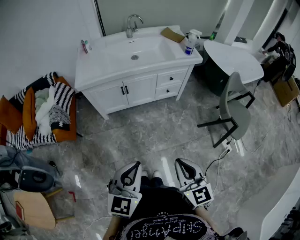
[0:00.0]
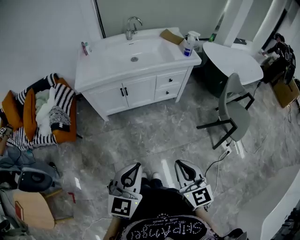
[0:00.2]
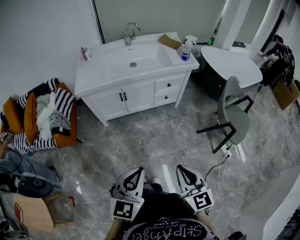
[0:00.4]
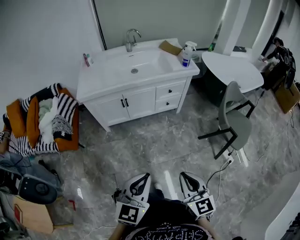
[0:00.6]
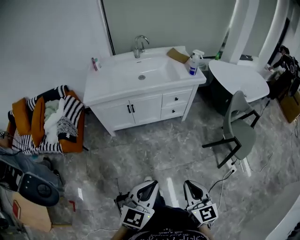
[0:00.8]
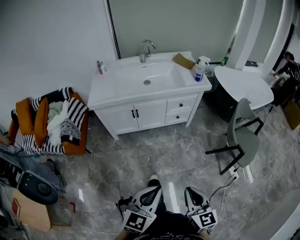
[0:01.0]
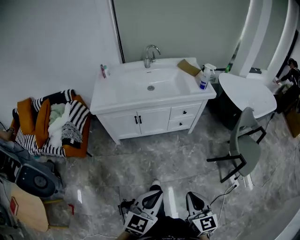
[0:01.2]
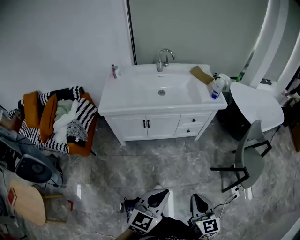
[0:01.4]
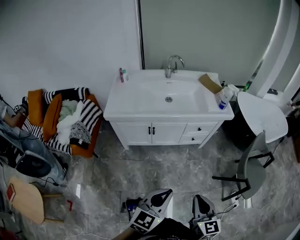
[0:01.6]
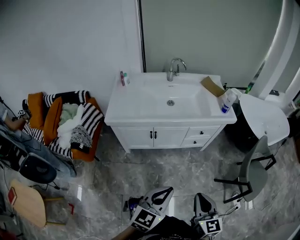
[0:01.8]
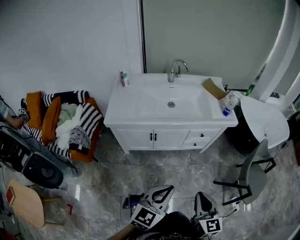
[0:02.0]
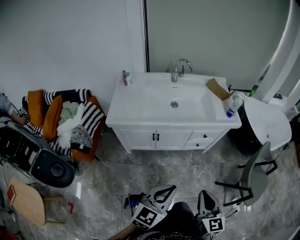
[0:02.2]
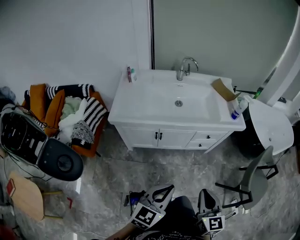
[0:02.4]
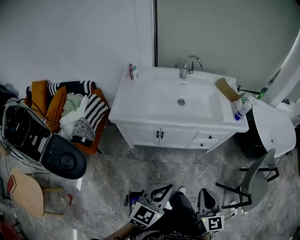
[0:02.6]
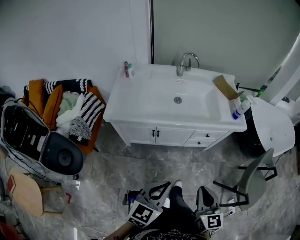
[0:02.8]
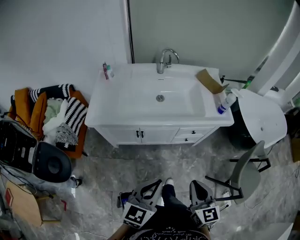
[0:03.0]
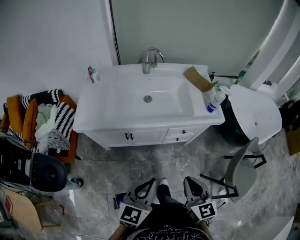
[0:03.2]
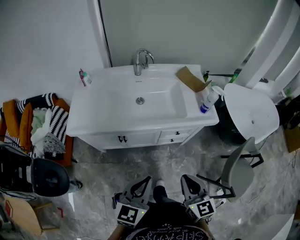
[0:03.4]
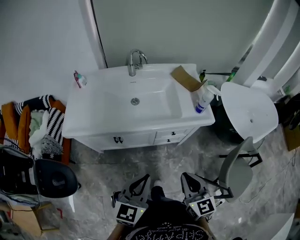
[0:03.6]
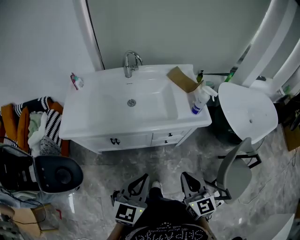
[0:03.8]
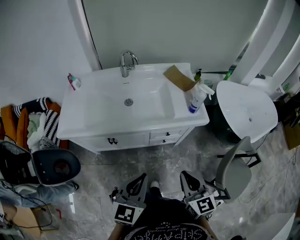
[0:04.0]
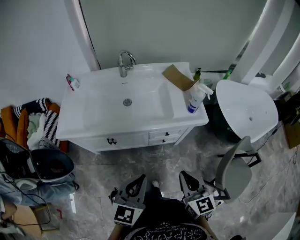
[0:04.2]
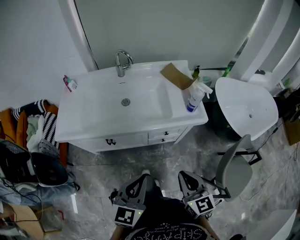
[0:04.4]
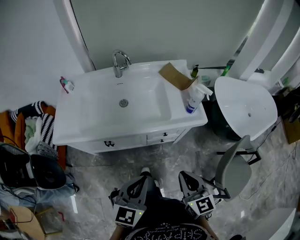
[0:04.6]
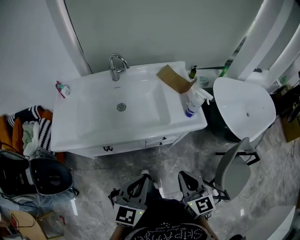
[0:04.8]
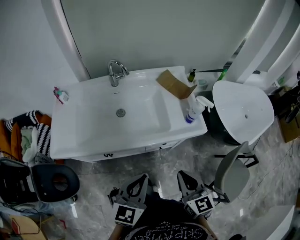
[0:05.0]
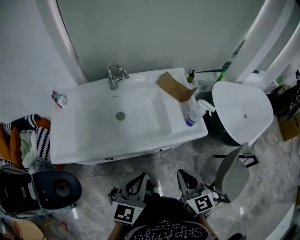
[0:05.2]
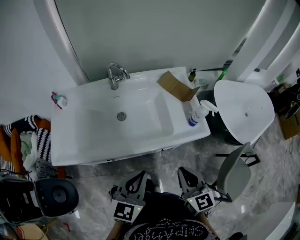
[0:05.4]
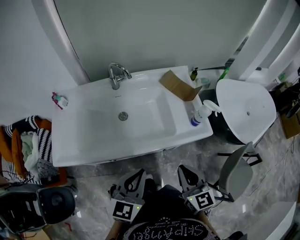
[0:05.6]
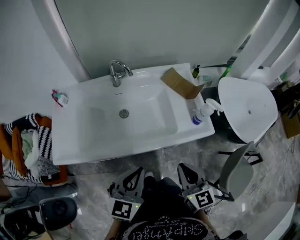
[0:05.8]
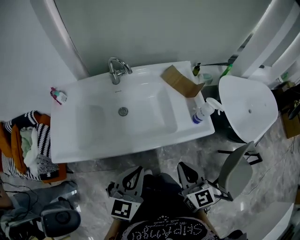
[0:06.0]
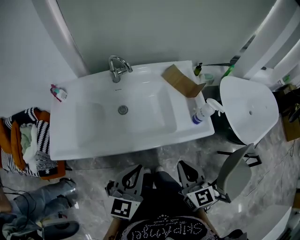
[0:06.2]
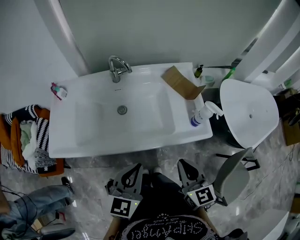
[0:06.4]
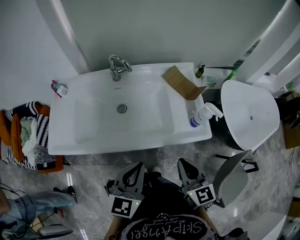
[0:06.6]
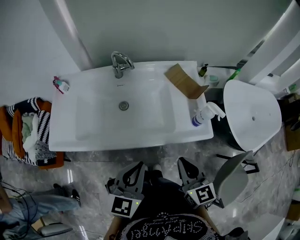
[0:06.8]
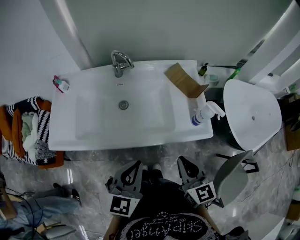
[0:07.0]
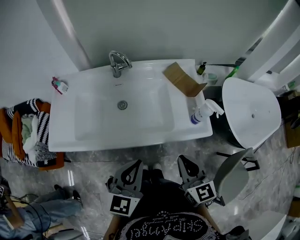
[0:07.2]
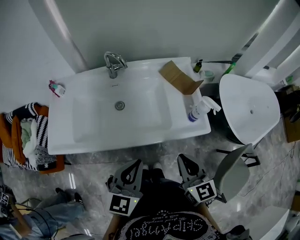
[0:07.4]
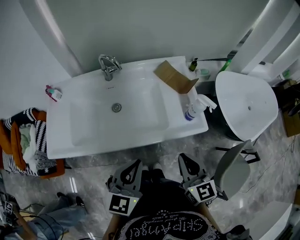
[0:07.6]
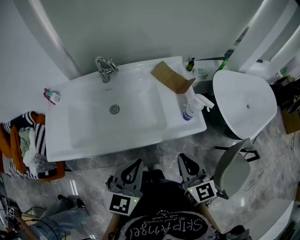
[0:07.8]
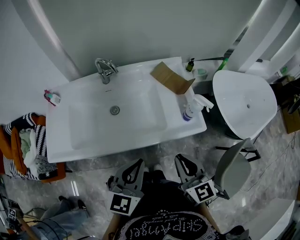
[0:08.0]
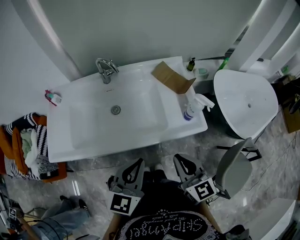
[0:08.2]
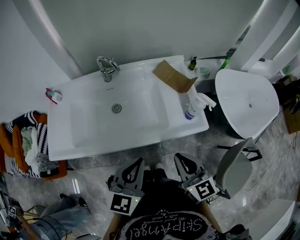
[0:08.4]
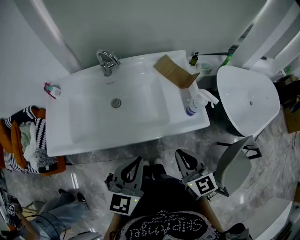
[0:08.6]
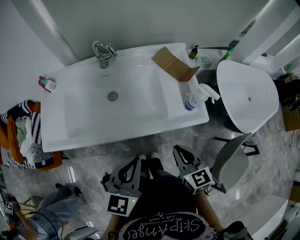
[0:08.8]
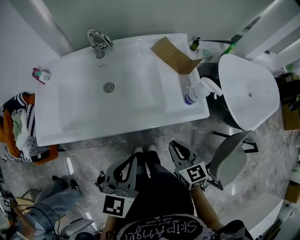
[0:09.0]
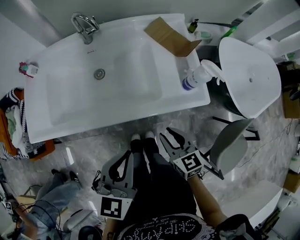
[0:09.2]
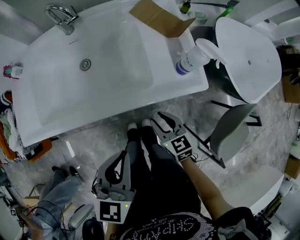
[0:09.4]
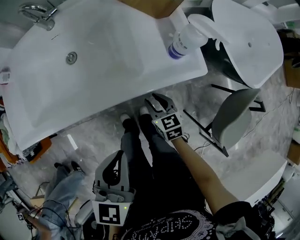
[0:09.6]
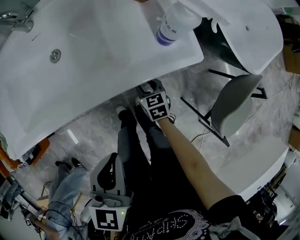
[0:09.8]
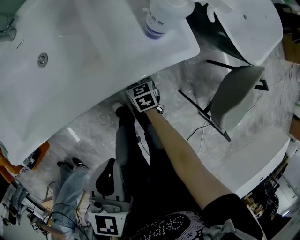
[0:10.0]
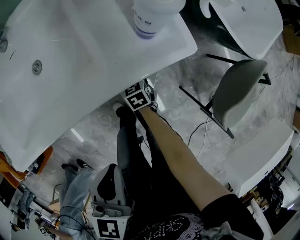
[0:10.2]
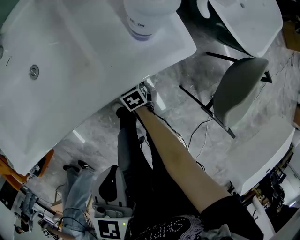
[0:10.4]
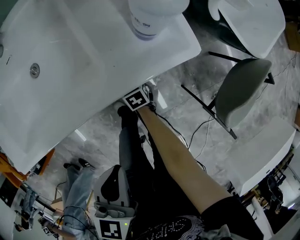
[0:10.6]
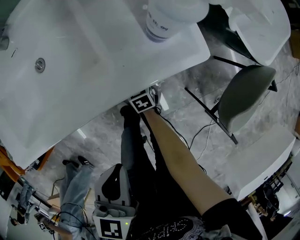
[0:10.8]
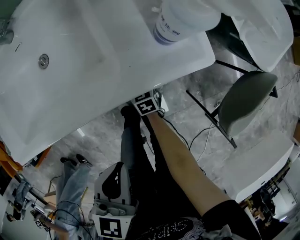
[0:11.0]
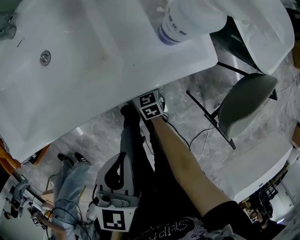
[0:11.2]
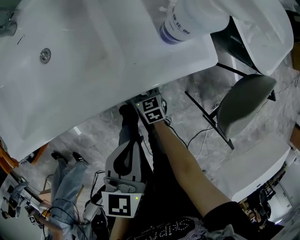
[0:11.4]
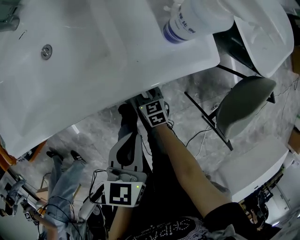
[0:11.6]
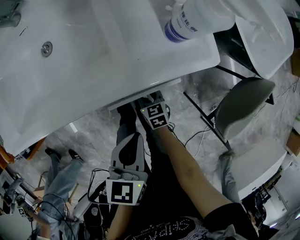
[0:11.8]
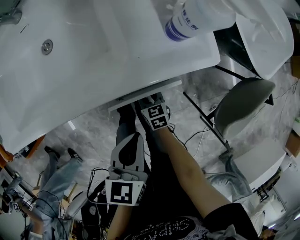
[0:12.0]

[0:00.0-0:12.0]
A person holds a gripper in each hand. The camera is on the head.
0:00.0 to 0:01.6: The right gripper travels forward by roughly 10 cm; the left gripper heads forward and to the right, covering approximately 15 cm.
0:01.6 to 0:03.0: Both grippers travel together forward, about 20 cm.
0:03.0 to 0:04.4: Both grippers move to the right and forward, about 15 cm.
0:04.4 to 0:06.0: The grippers both shift forward by approximately 15 cm.
0:06.0 to 0:07.6: The right gripper goes approximately 5 cm to the right. The left gripper moves approximately 5 cm.
0:07.6 to 0:09.0: The right gripper heads downward, covering some 10 cm.
0:09.0 to 0:10.4: The right gripper shifts about 35 cm downward, turns by about 30 degrees, and opens up. Meanwhile the left gripper goes some 15 cm downward and to the right, and swivels roughly 20 degrees.
0:10.4 to 0:12.0: The right gripper is displaced backward by approximately 10 cm, while the left gripper travels downward by approximately 10 cm.

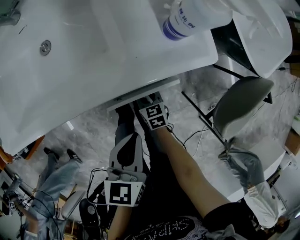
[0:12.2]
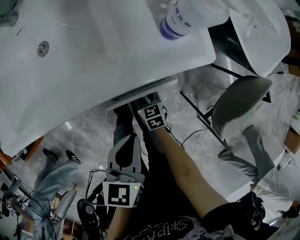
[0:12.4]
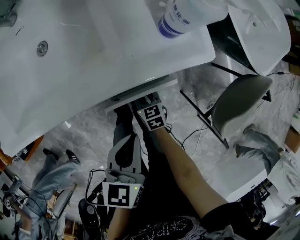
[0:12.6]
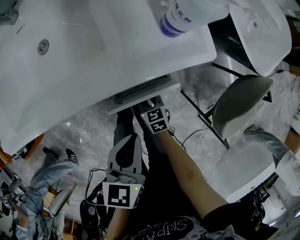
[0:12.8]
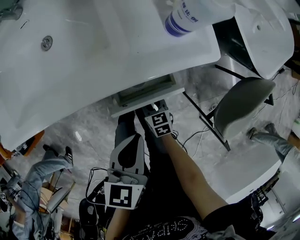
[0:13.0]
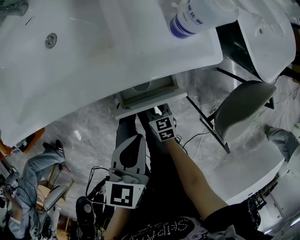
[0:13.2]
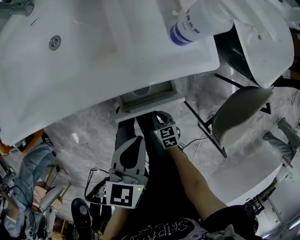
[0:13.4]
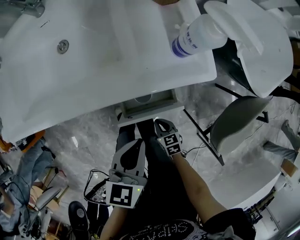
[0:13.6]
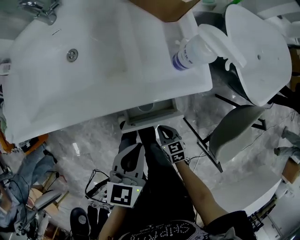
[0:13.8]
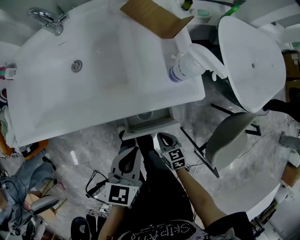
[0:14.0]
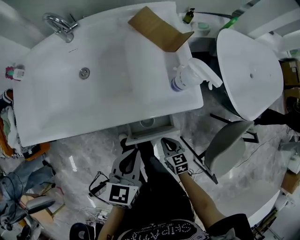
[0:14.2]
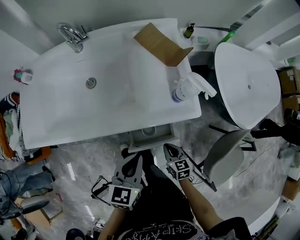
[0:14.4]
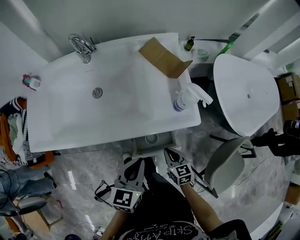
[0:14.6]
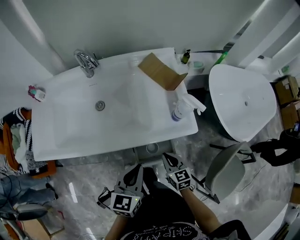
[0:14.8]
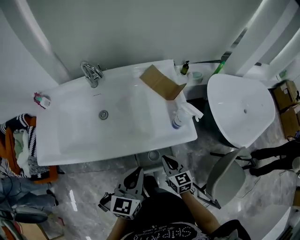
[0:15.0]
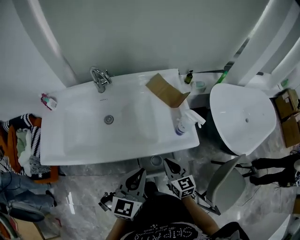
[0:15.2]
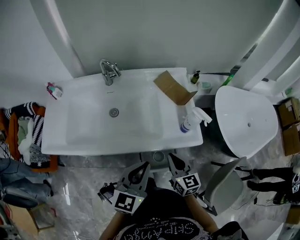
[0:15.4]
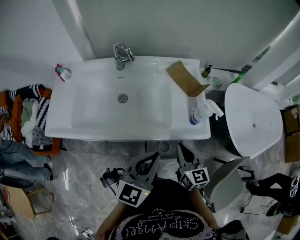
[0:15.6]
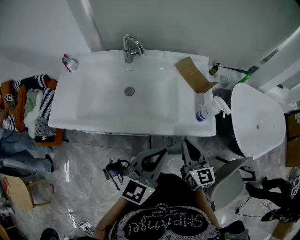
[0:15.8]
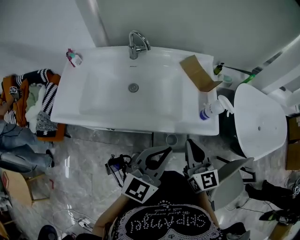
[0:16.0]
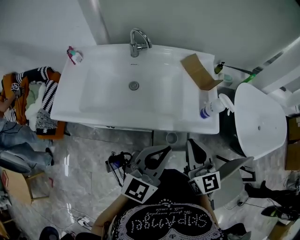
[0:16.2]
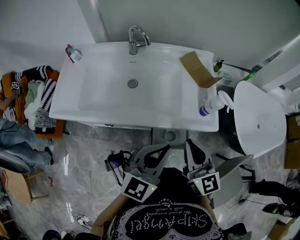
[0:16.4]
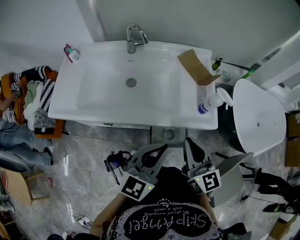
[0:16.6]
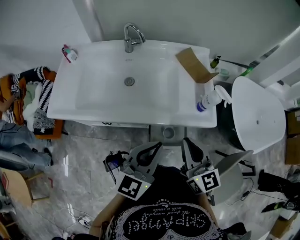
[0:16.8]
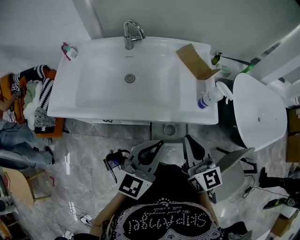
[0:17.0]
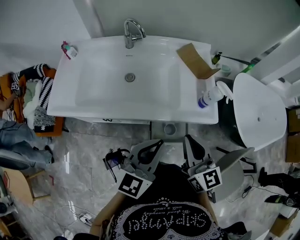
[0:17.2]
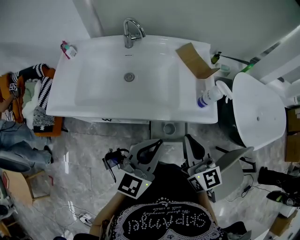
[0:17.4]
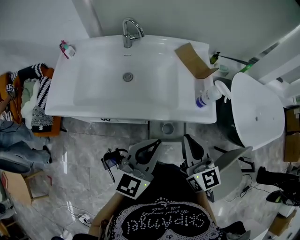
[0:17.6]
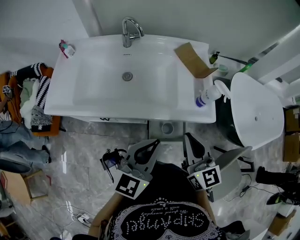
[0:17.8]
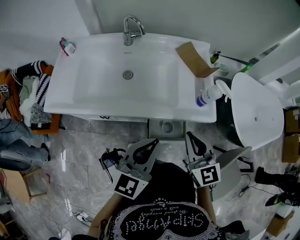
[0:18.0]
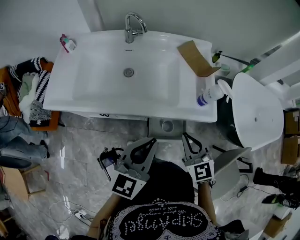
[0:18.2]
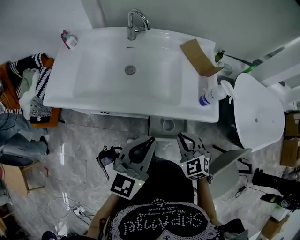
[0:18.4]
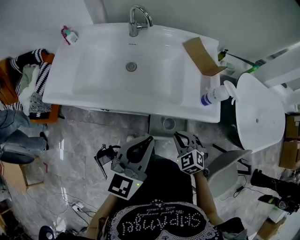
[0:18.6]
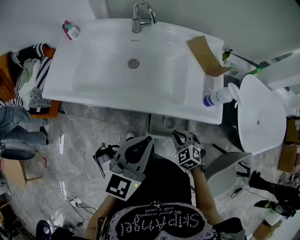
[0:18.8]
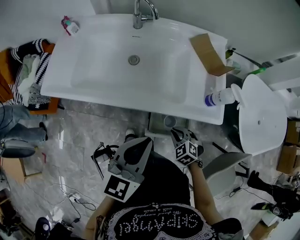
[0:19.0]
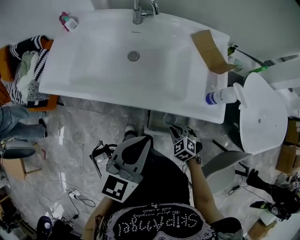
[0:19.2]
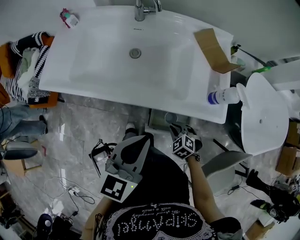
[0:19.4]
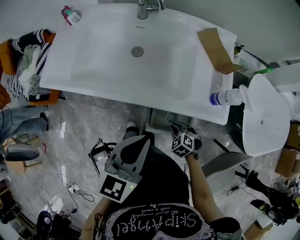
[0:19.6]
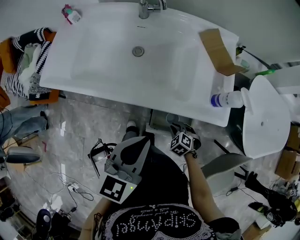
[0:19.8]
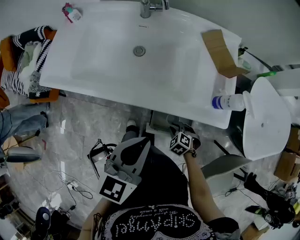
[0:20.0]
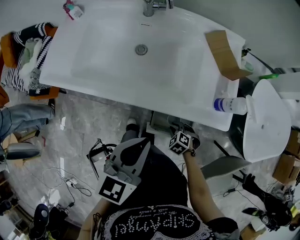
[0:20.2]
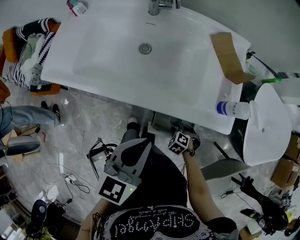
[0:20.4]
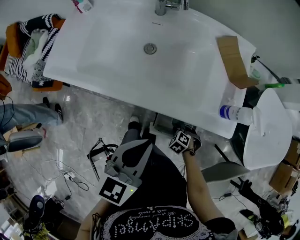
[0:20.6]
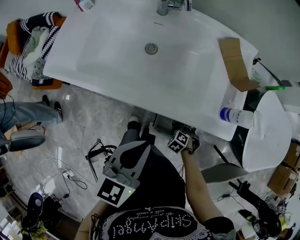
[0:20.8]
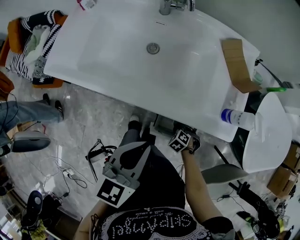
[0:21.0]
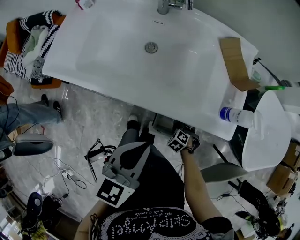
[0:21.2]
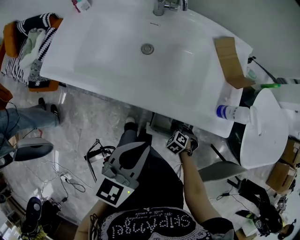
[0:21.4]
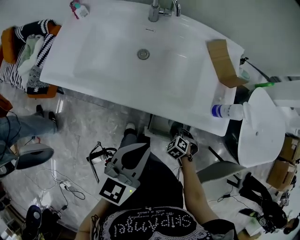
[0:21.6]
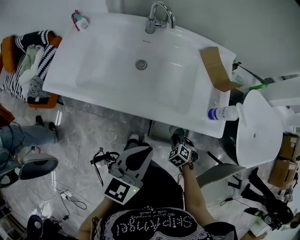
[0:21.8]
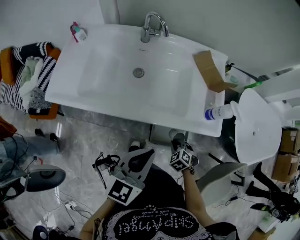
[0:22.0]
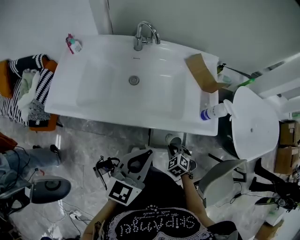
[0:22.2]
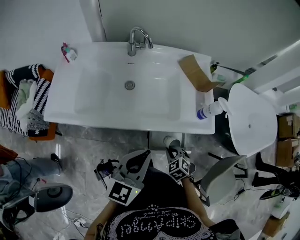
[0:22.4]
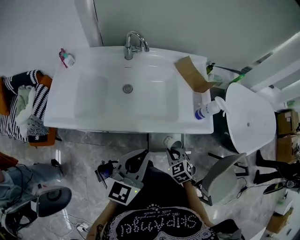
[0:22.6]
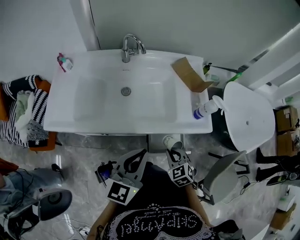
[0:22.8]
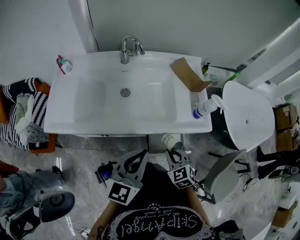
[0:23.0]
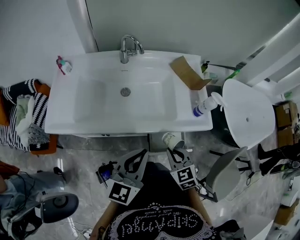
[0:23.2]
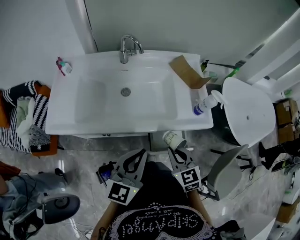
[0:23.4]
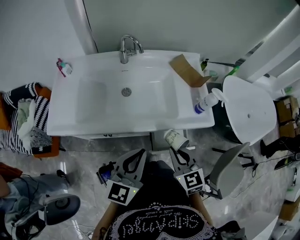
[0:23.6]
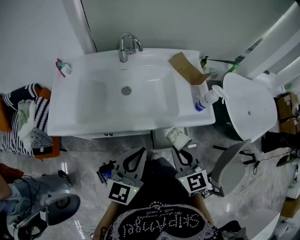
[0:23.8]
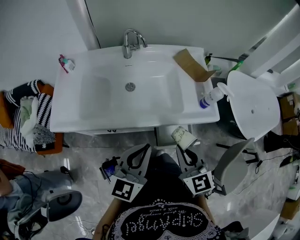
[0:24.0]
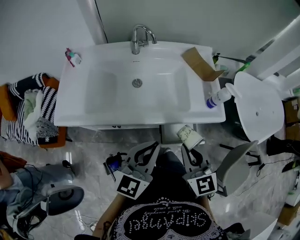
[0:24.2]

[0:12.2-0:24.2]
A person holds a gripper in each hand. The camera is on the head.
0:12.2 to 0:13.8: The right gripper heads backward, upward and to the right, covering about 10 cm, and closes up.
0:13.8 to 0:15.2: The left gripper heads upward, covering approximately 15 cm, and changes its angle by about 20 degrees, while the right gripper shifts roughly 30 cm upward and forward, and rotates approximately 30 degrees.
0:15.2 to 0:16.6: The right gripper goes roughly 15 cm upward.
0:16.6 to 0:18.2: The right gripper is displaced downward by about 10 cm, and rotates approximately 30 degrees.
0:18.2 to 0:19.8: The right gripper travels downward by about 30 cm, and tips its fingers downward by about 40 degrees.
0:19.8 to 0:21.2: The right gripper goes roughly 5 cm downward.
0:21.2 to 0:22.6: The right gripper is displaced upward by roughly 20 cm, and changes its angle by about 40 degrees, while the left gripper moves upward, some 5 cm, and swivels some 20 degrees.
0:22.6 to 0:24.2: The right gripper shifts roughly 20 cm upward, and tips its fingers upward by roughly 30 degrees.
